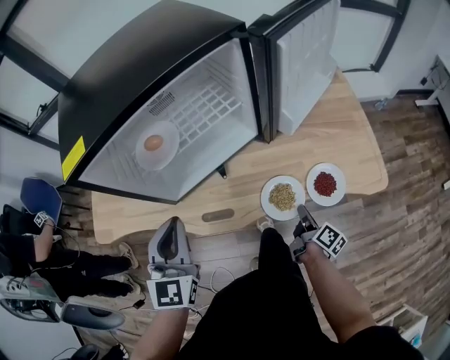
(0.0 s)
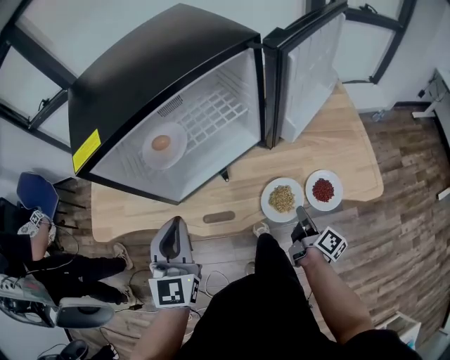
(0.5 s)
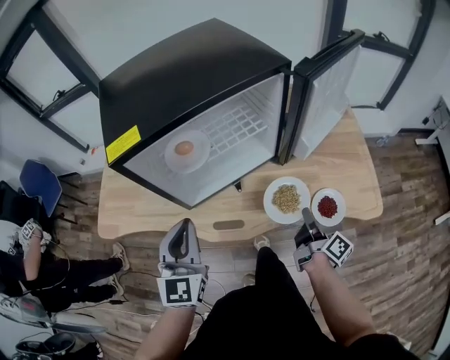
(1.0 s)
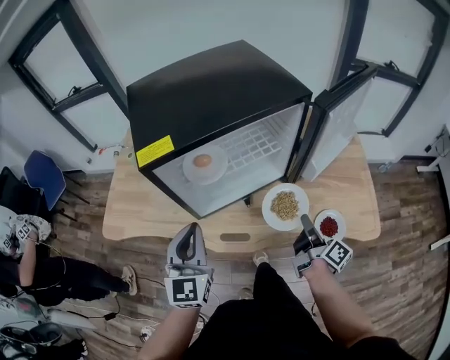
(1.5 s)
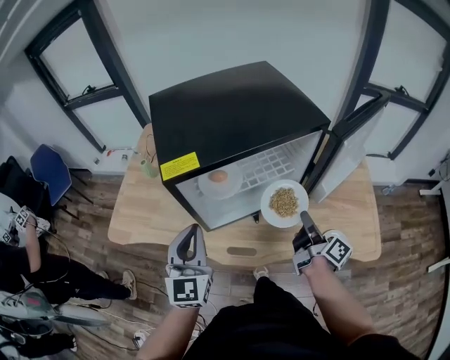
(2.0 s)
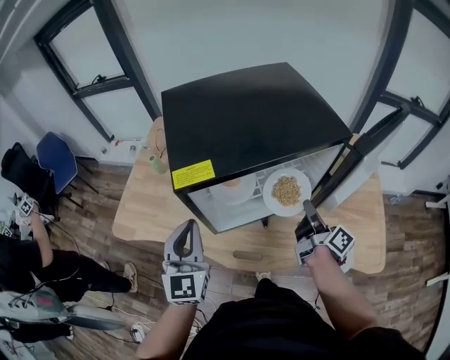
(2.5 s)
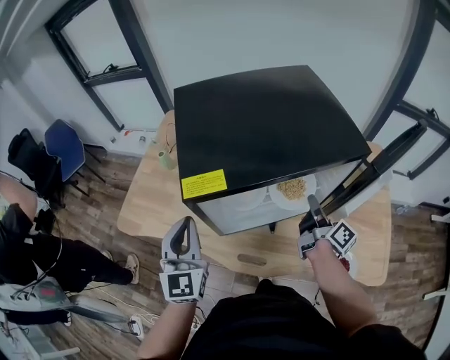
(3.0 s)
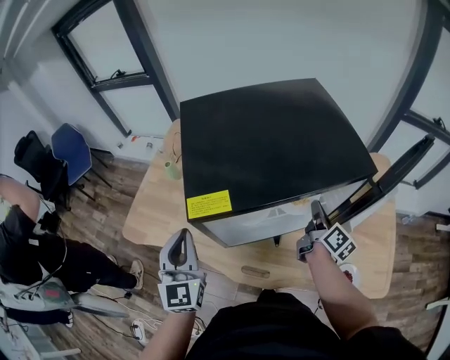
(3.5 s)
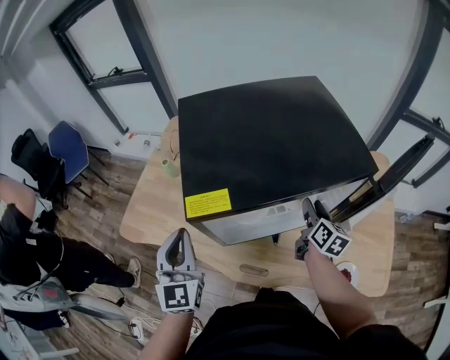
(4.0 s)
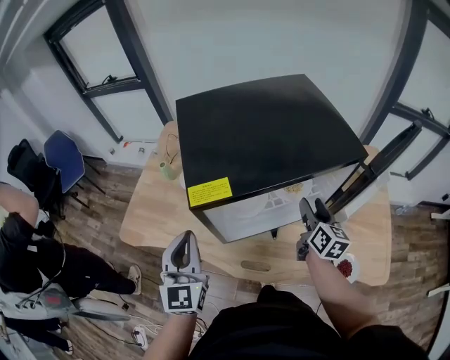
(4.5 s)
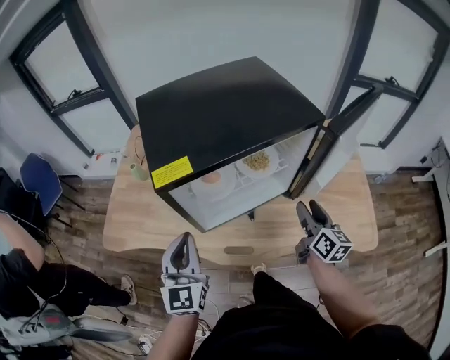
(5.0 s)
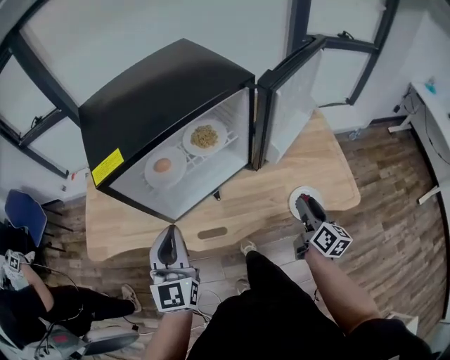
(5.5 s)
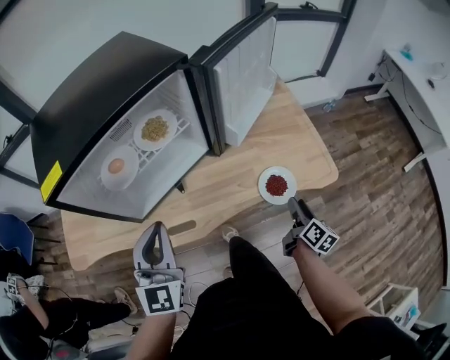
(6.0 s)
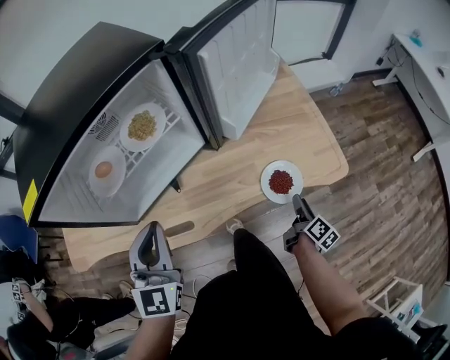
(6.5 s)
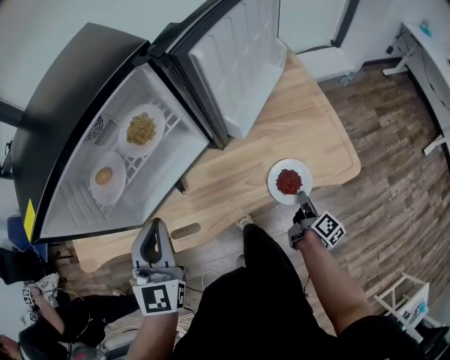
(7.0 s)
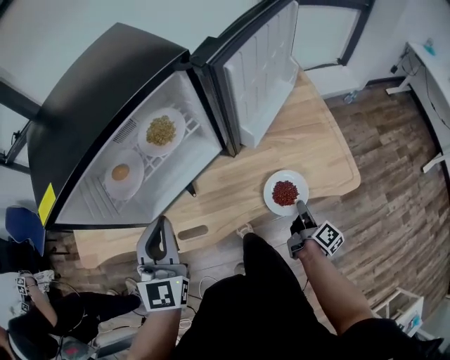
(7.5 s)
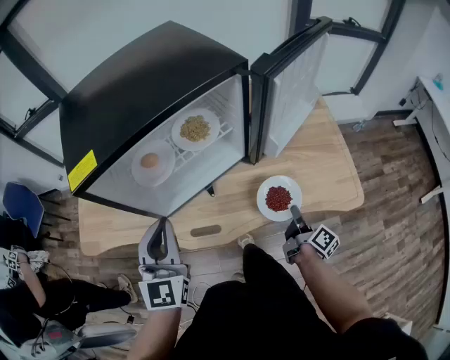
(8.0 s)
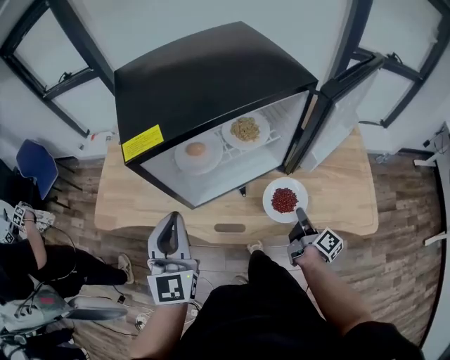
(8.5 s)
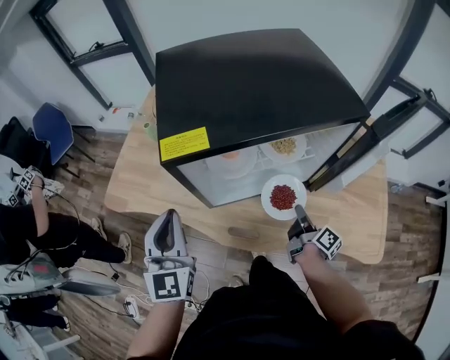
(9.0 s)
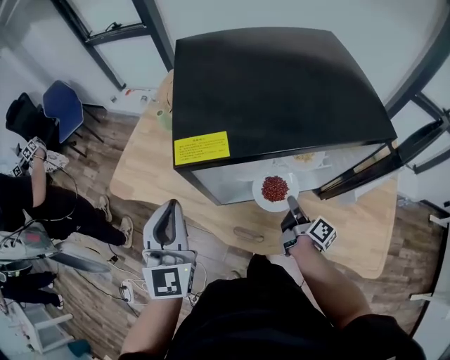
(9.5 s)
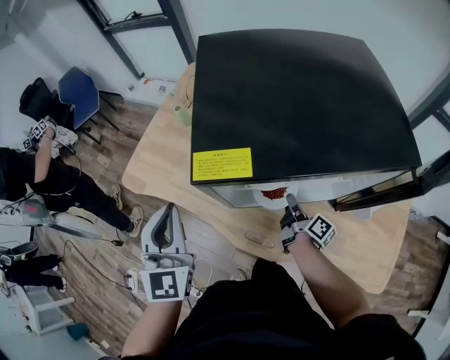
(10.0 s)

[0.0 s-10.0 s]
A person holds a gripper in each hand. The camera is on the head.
0.0 to 2.0 s: The right gripper moves upward and forward, approximately 25 cm, and turns by approximately 30 degrees. Meanwhile the left gripper shifts approximately 10 cm to the left and upward.
2.0 to 4.0 s: The left gripper heads to the left and forward, covering about 10 cm. Meanwhile the right gripper heads forward, covering approximately 15 cm, swivels about 40 degrees, and opens its fingers.
4.0 to 6.0 s: The right gripper moves some 50 cm, and rotates roughly 40 degrees. The left gripper shifts by about 25 cm, and turns by about 40 degrees.
6.0 to 8.0 s: The left gripper moves to the left, approximately 5 cm. Meanwhile the right gripper travels to the left and forward by some 10 cm, turns by roughly 30 degrees, and closes its fingers.
8.0 to 10.0 s: The left gripper ends up about 20 cm from where it was, and turns by about 30 degrees, while the right gripper shifts by roughly 35 cm, and changes its angle by roughly 40 degrees.

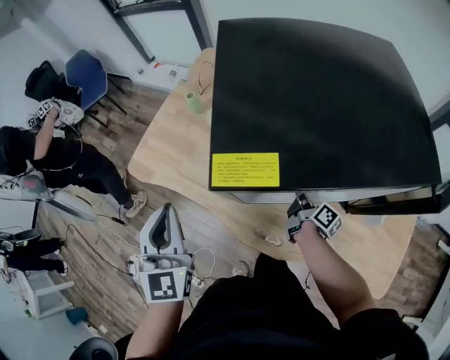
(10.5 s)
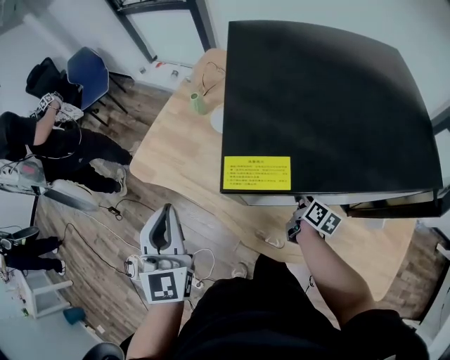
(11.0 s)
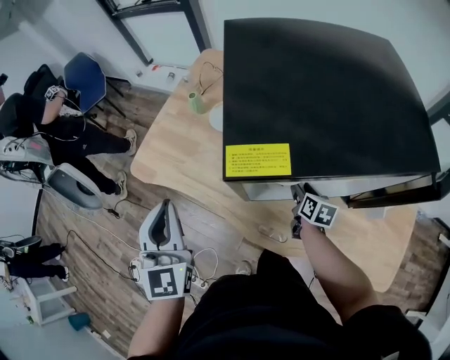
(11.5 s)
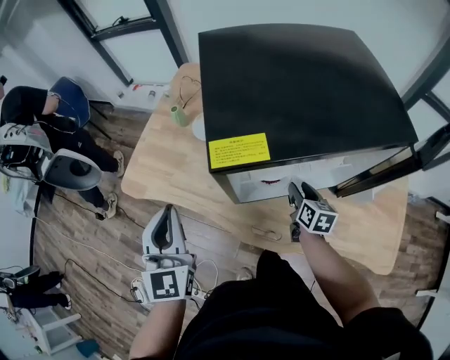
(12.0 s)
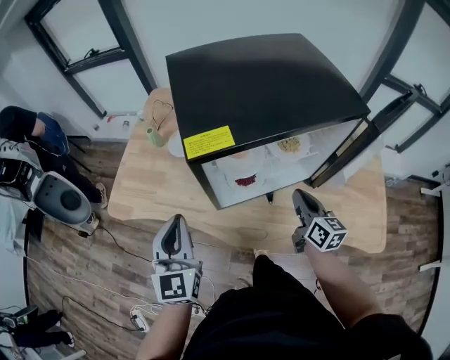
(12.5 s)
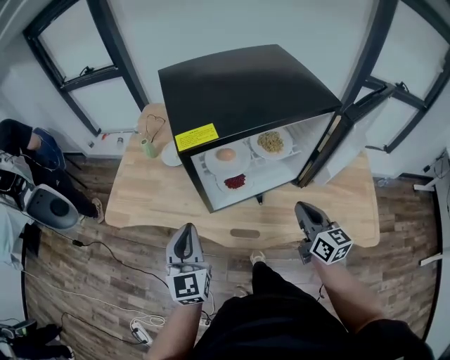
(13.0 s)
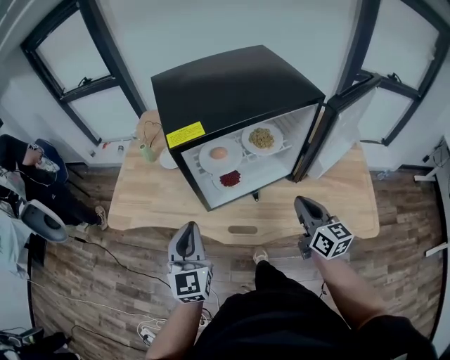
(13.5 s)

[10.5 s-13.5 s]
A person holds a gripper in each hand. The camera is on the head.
10.5 to 12.0 s: The right gripper changes place by some 5 cm, twists about 40 degrees counterclockwise, seen from behind, and opens its fingers.
12.0 to 13.5 s: The right gripper is displaced backward and upward by approximately 25 cm, swivels about 20 degrees, and closes; the left gripper travels to the right and backward by some 10 cm.

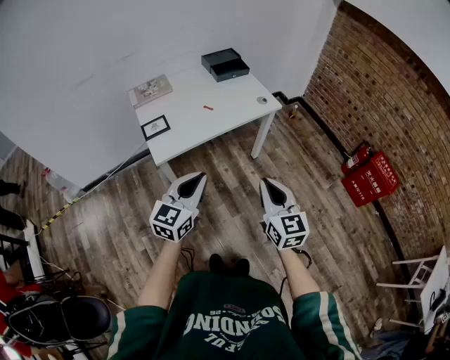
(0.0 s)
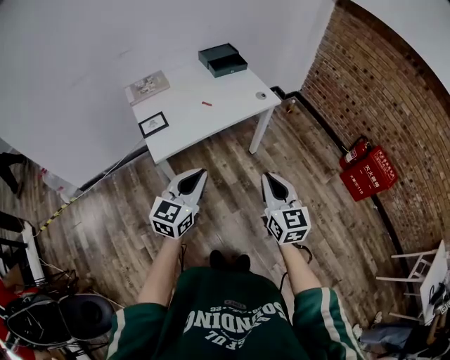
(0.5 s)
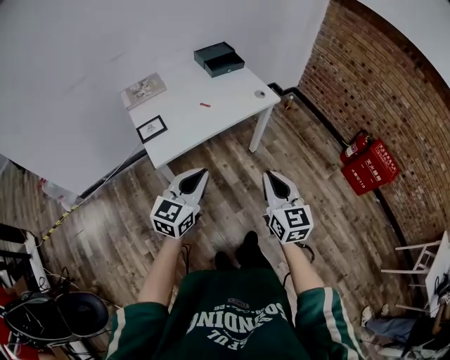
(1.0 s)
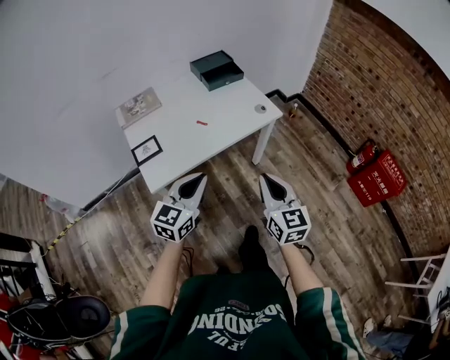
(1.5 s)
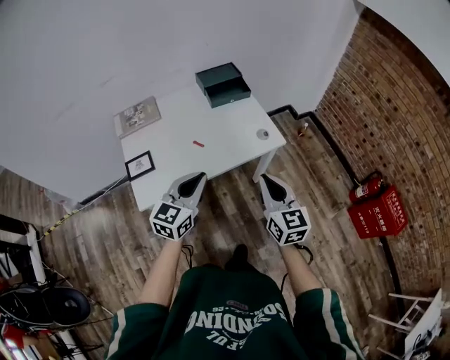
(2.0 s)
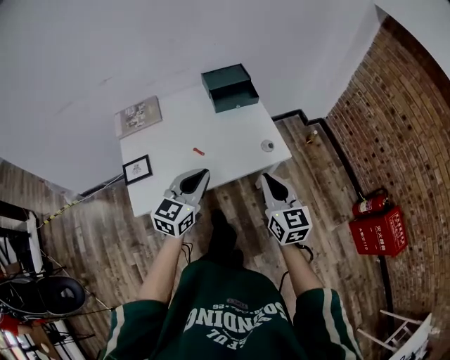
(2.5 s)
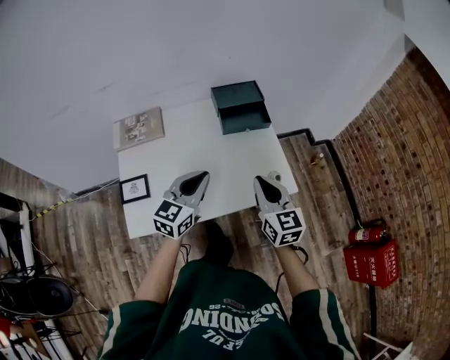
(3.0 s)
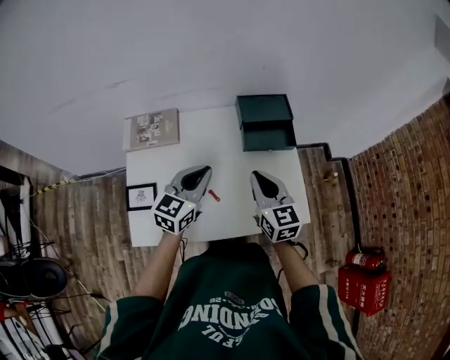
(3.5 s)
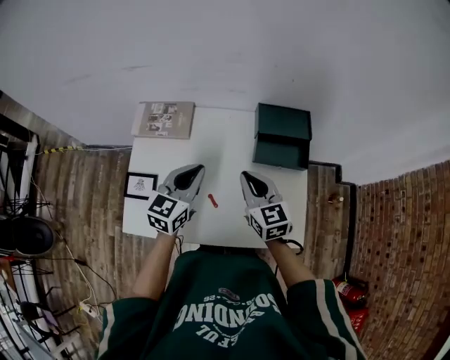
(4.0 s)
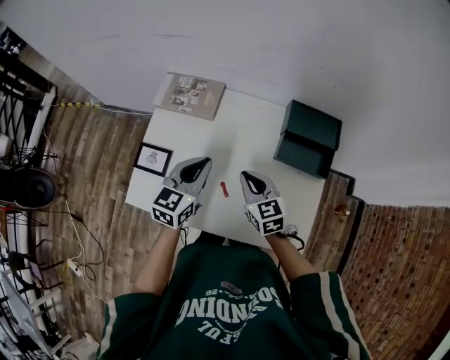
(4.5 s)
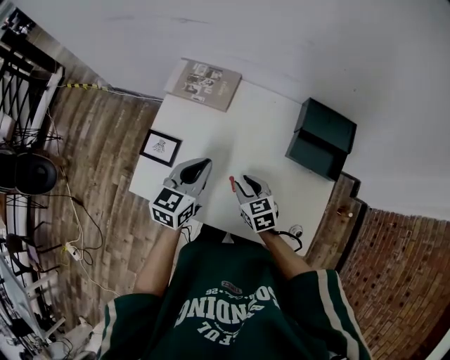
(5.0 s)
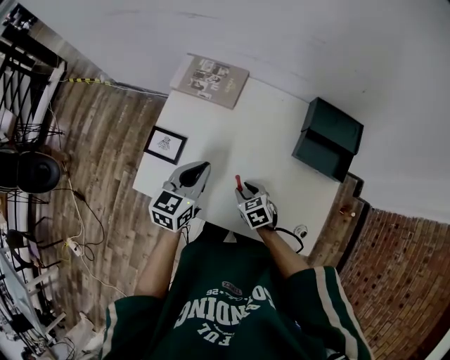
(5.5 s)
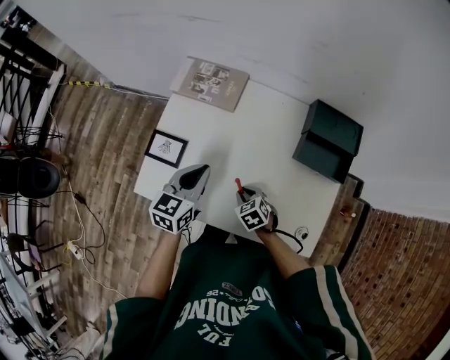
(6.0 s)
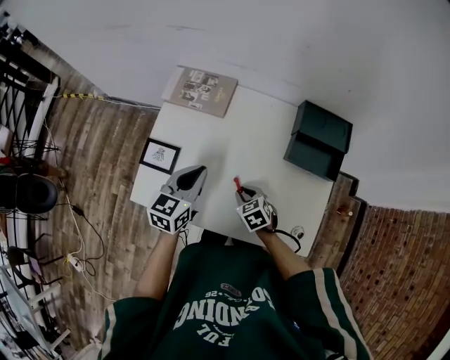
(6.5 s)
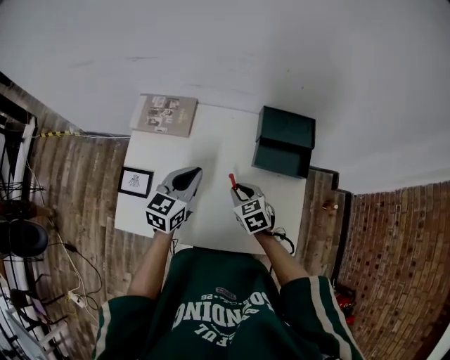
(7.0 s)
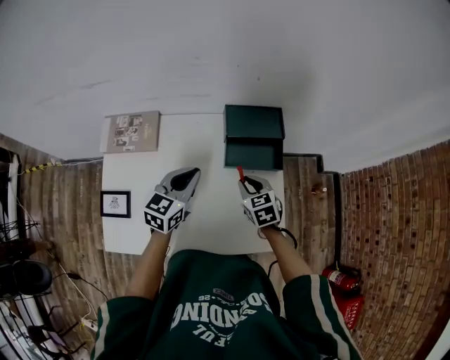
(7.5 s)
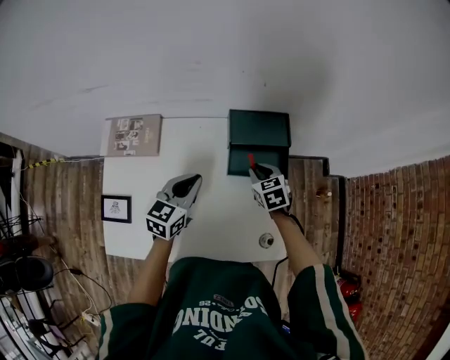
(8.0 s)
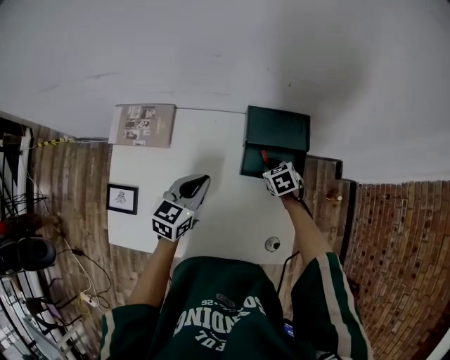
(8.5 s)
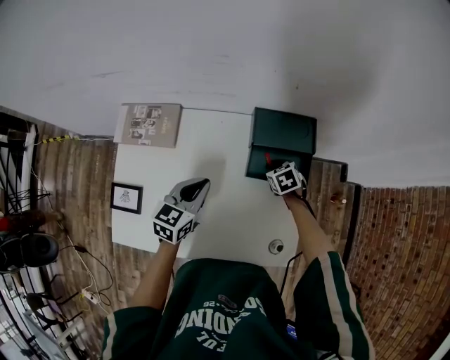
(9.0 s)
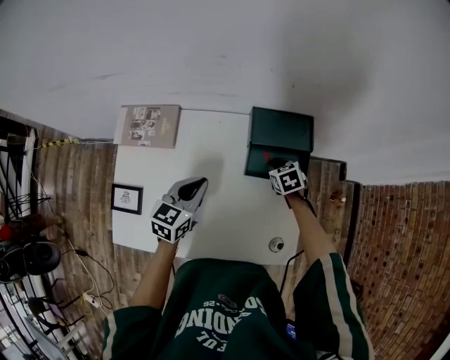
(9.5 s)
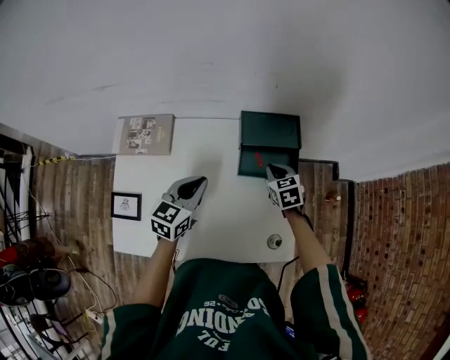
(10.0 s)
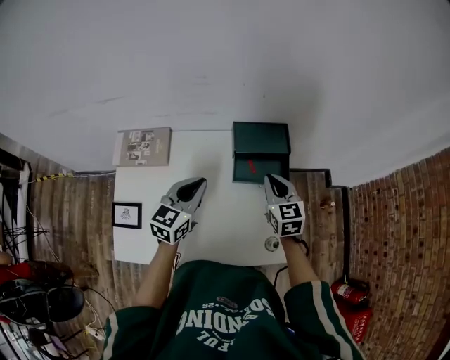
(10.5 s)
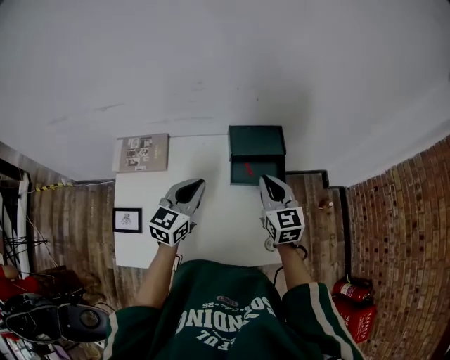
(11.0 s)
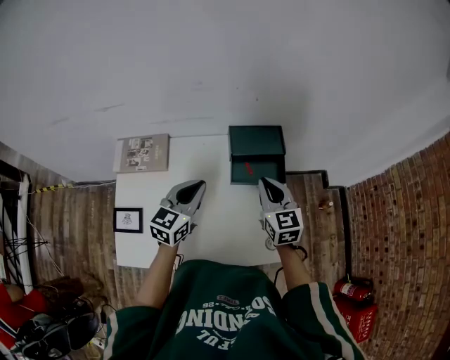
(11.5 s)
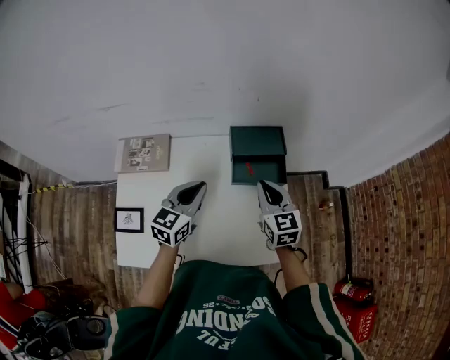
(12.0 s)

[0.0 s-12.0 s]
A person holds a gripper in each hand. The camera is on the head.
0.0 to 2.0 s: Both grippers move forward, about 30 cm.
2.0 to 4.0 s: The left gripper ends up some 35 cm from where it was, and swivels about 30 degrees. The right gripper shifts by roughly 40 cm, and rotates some 40 degrees.
4.0 to 6.0 s: The left gripper is displaced to the left and downward by roughly 15 cm, while the right gripper goes some 30 cm downward and to the left, and tilts its fingers some 40 degrees downward.
6.0 to 8.0 s: The right gripper changes place by approximately 35 cm, and swivels approximately 30 degrees. Meanwhile the left gripper moves roughly 20 cm, and swivels some 20 degrees.
8.0 to 10.0 s: The right gripper goes downward and returns, roughly 10 cm each way.
10.0 to 12.0 s: The right gripper travels upward and backward by approximately 20 cm, and turns by roughly 30 degrees; the left gripper is displaced upward by roughly 5 cm.

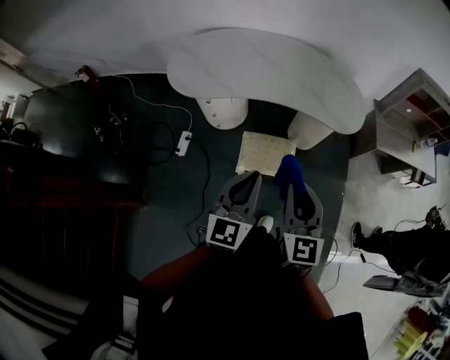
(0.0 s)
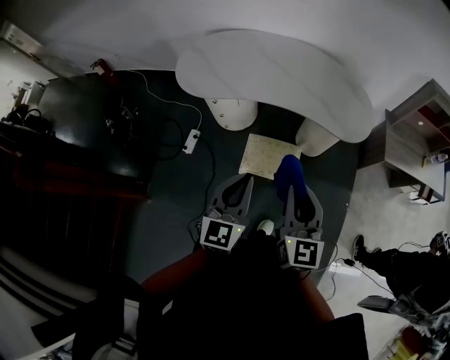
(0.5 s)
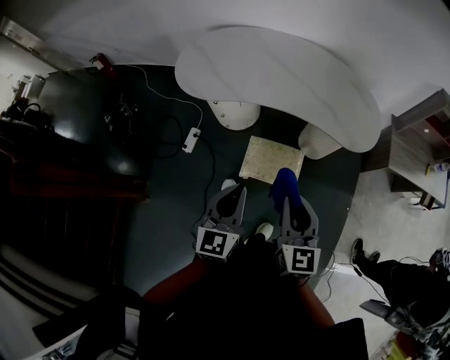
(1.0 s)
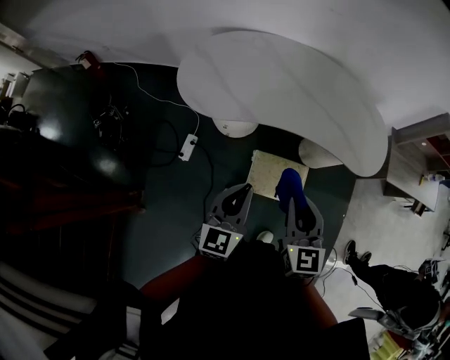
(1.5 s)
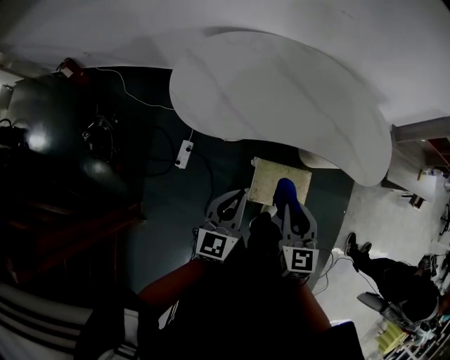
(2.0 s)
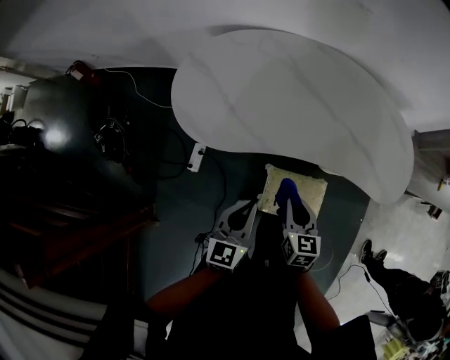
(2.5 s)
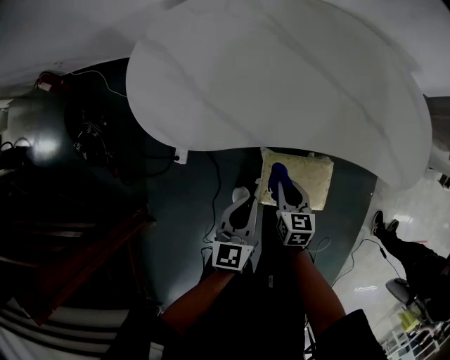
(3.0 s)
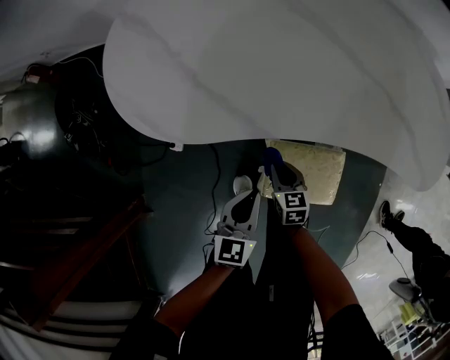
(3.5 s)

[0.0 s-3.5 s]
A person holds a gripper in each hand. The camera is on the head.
0.0 to 2.0 s: The two grippers go approximately 30 cm forward, to the left and downward.
2.0 to 3.5 s: Both grippers move downward, approximately 35 cm. The right gripper swivels roughly 30 degrees.
